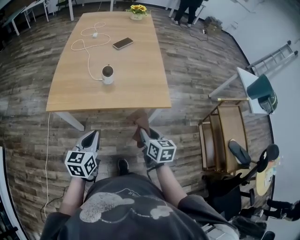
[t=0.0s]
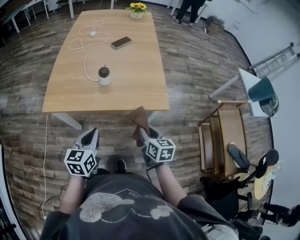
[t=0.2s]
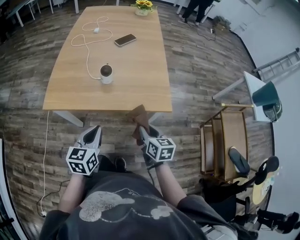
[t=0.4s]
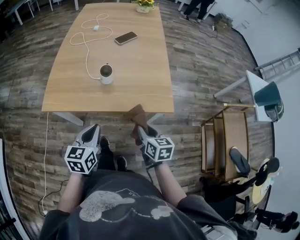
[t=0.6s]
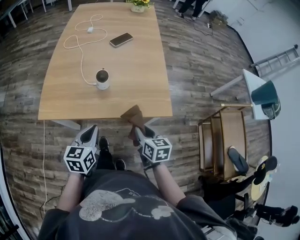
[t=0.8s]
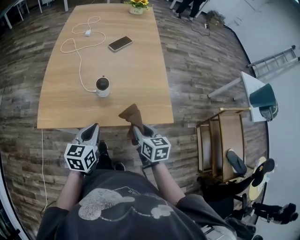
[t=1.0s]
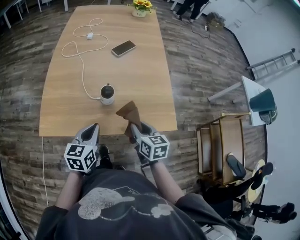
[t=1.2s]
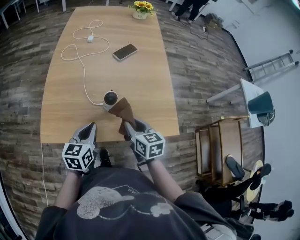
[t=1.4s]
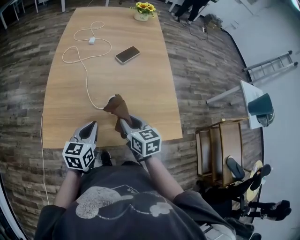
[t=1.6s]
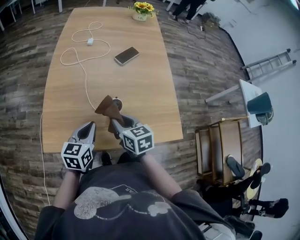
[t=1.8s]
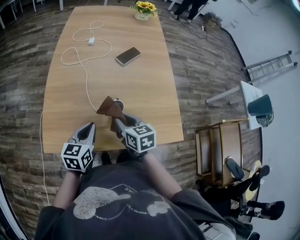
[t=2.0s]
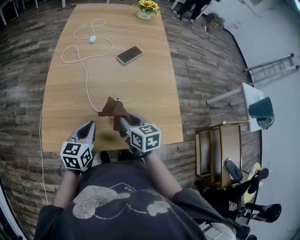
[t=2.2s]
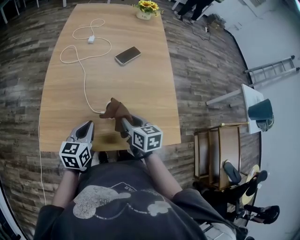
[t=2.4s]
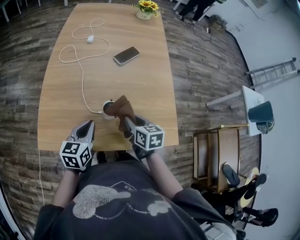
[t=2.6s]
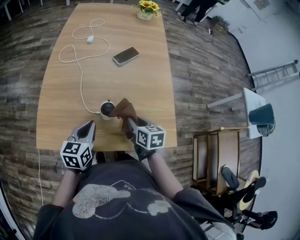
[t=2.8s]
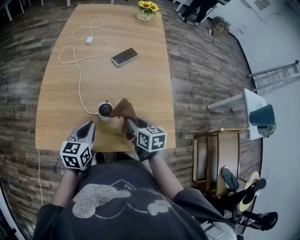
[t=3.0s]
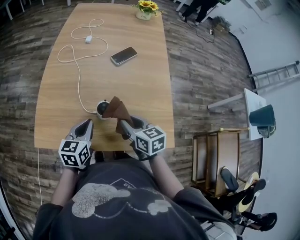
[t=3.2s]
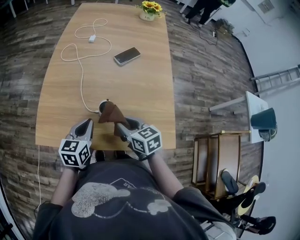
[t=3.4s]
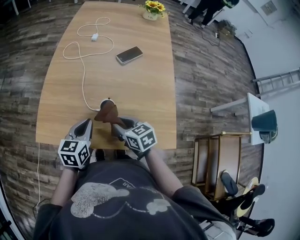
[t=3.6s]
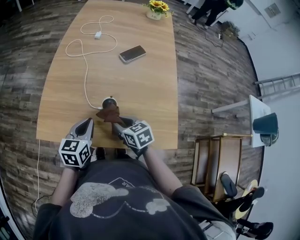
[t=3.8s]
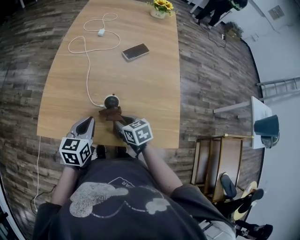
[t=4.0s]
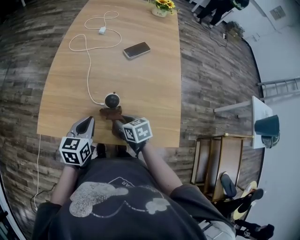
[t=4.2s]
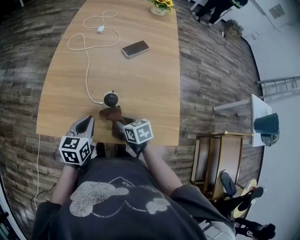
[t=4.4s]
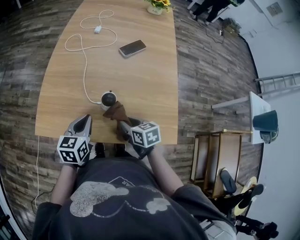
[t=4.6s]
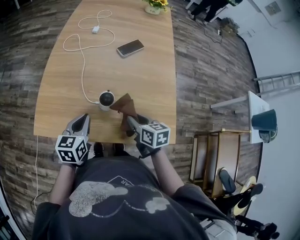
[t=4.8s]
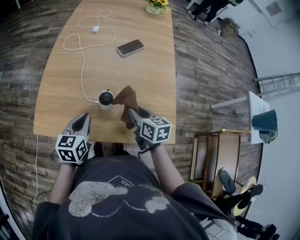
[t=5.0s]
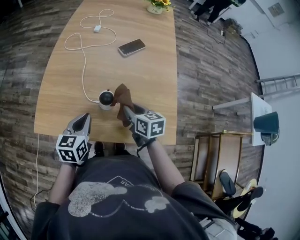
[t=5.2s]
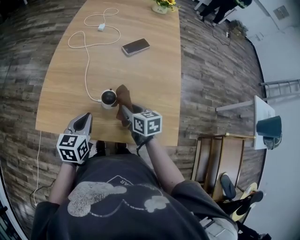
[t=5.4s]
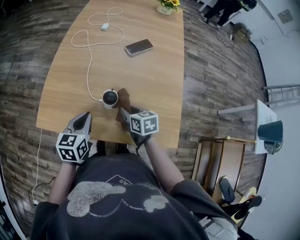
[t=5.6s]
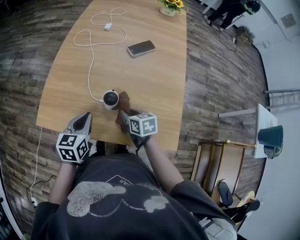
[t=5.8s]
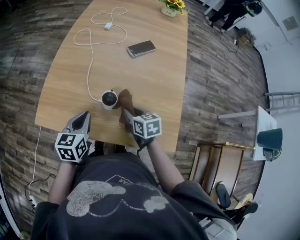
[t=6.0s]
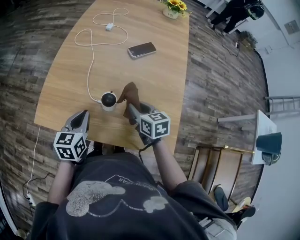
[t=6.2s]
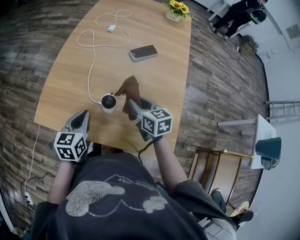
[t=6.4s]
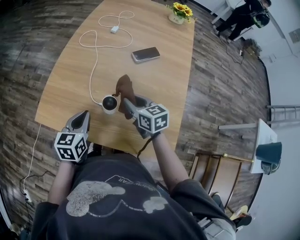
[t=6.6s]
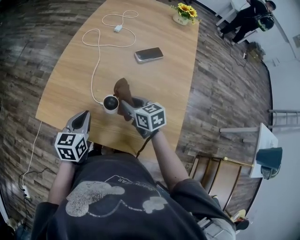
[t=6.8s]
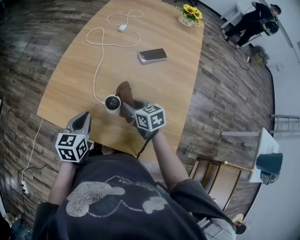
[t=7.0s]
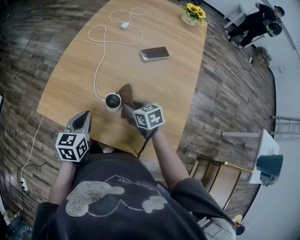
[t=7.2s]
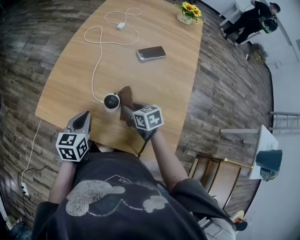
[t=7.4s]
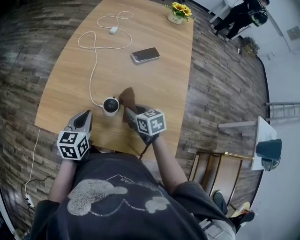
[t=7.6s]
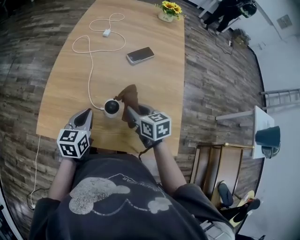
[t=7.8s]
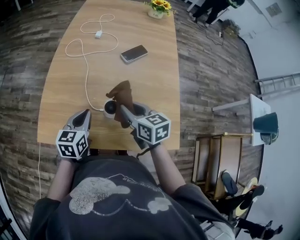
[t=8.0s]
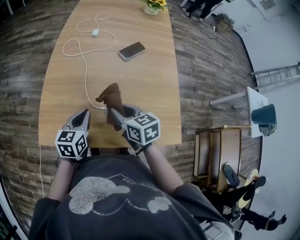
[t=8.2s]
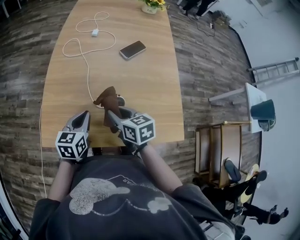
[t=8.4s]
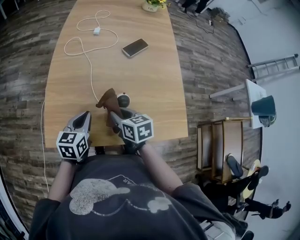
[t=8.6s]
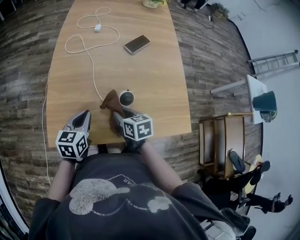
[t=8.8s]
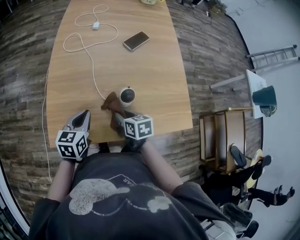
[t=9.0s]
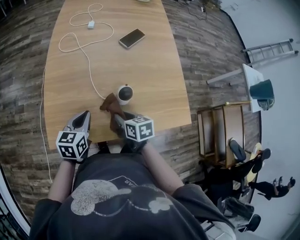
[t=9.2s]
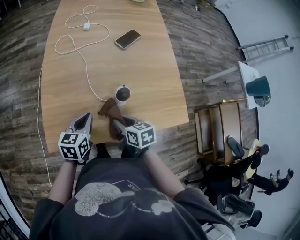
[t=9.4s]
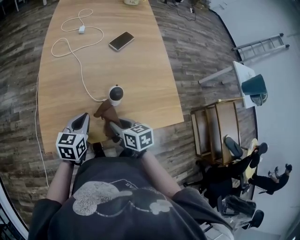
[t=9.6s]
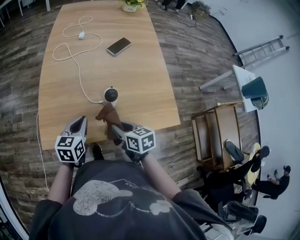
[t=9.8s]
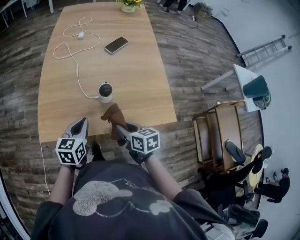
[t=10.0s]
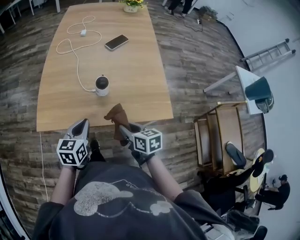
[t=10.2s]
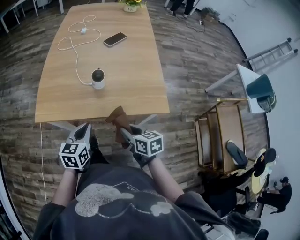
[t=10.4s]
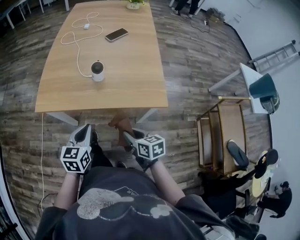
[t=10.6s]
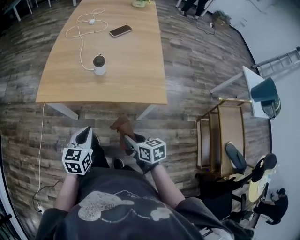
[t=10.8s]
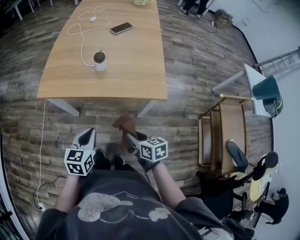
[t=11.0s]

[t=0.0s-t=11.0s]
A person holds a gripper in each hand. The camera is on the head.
t=0.0s to t=1.6s: The left gripper is displaced forward by about 25 cm. Meanwhile the right gripper goes roughly 30 cm forward and to the left.
t=4.8s to t=6.2s: The right gripper shifts about 5 cm forward, and travels downward and back again, some 5 cm each way.
t=6.2s to t=7.8s: The right gripper goes downward and returns, roughly 5 cm each way.
t=7.8s to t=9.4s: The left gripper moves to the left, roughly 5 cm, and rotates some 20 degrees; the right gripper goes roughly 15 cm to the left, backward and downward, and swivels some 20 degrees.
t=9.4s to t=11.0s: The left gripper moves backward, some 30 cm, while the right gripper is displaced backward and to the right by about 35 cm.

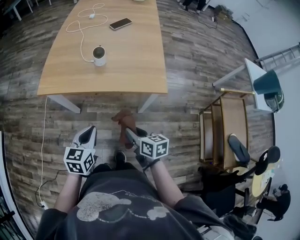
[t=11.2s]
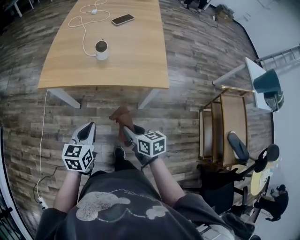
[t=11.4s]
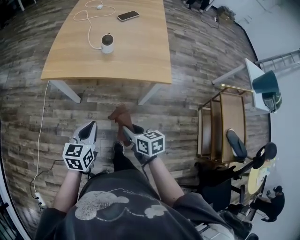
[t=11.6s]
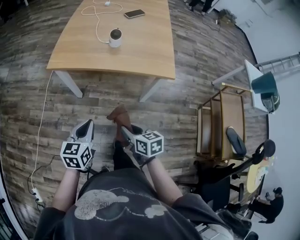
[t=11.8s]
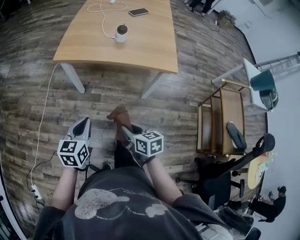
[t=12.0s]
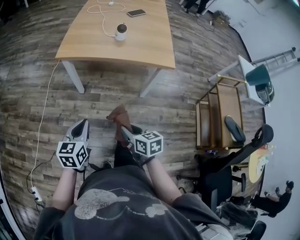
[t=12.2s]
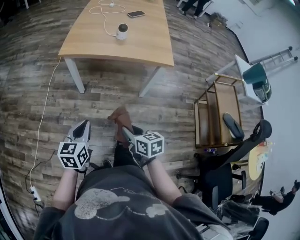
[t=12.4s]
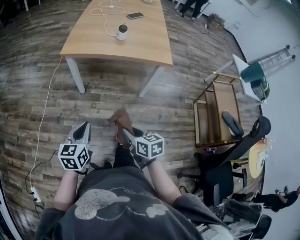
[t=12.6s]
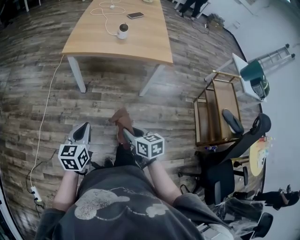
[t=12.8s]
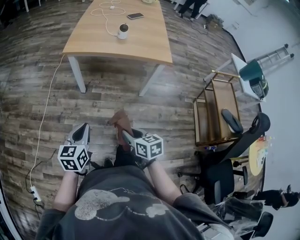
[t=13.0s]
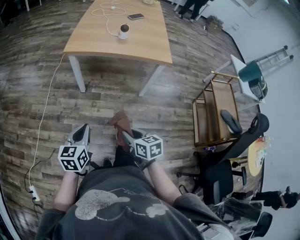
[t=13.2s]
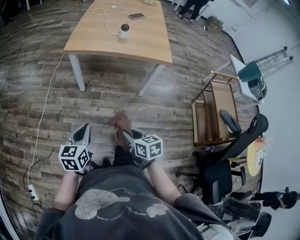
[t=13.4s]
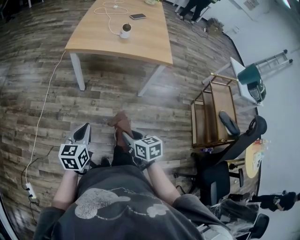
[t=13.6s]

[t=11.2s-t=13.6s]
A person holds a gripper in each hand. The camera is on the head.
t=11.2s to t=12.4s: Both grippers move backward and to the left, roughly 25 cm.
t=12.4s to t=13.6s: Both grippers travel together backward, approximately 5 cm.

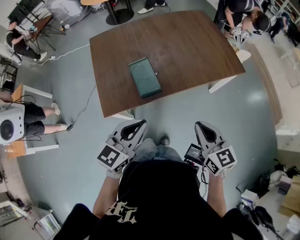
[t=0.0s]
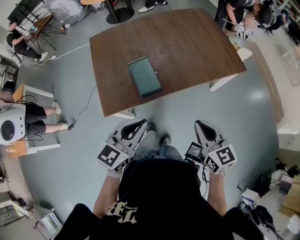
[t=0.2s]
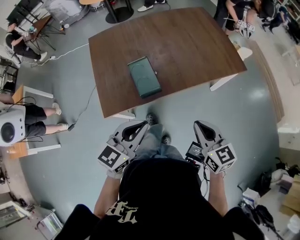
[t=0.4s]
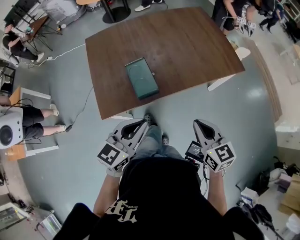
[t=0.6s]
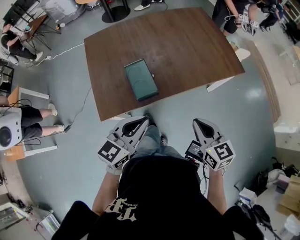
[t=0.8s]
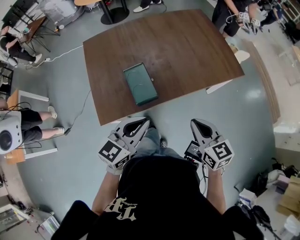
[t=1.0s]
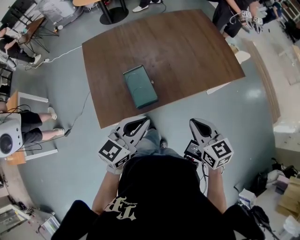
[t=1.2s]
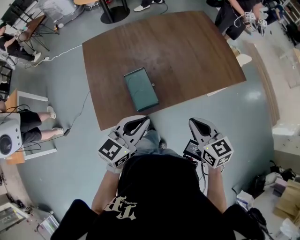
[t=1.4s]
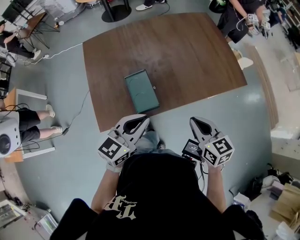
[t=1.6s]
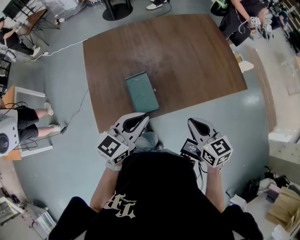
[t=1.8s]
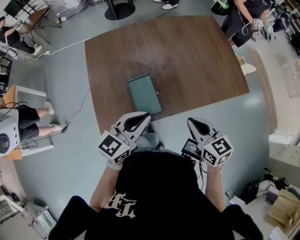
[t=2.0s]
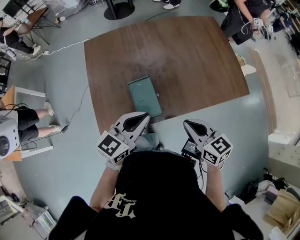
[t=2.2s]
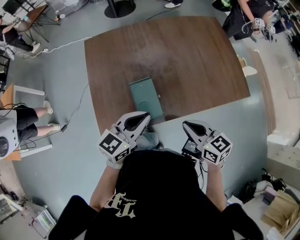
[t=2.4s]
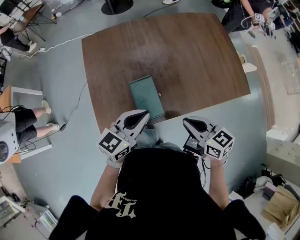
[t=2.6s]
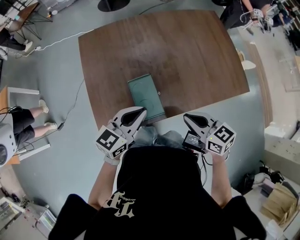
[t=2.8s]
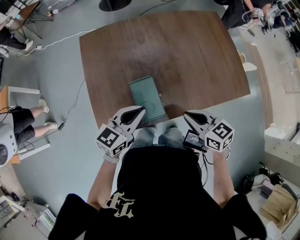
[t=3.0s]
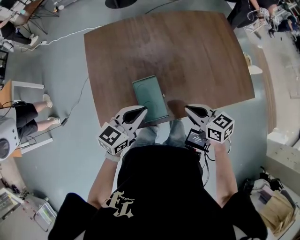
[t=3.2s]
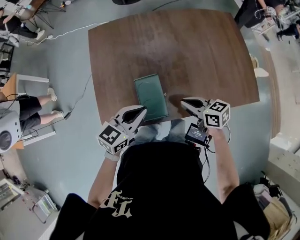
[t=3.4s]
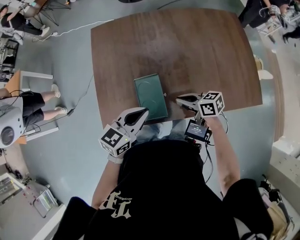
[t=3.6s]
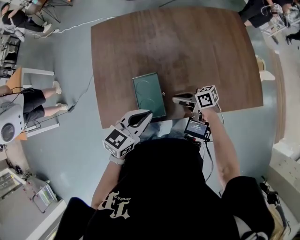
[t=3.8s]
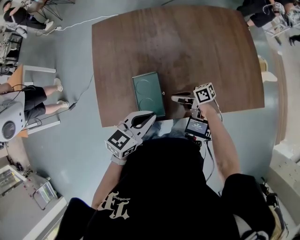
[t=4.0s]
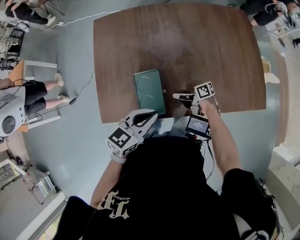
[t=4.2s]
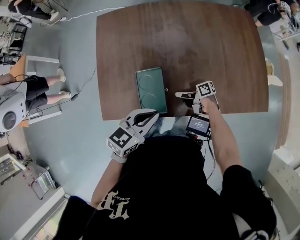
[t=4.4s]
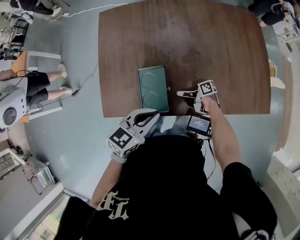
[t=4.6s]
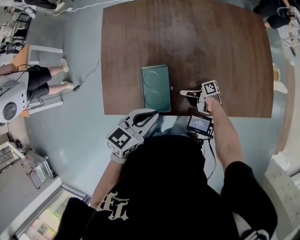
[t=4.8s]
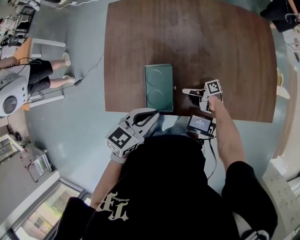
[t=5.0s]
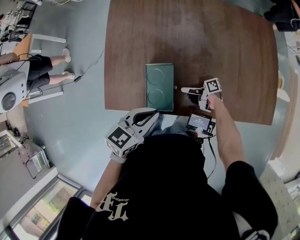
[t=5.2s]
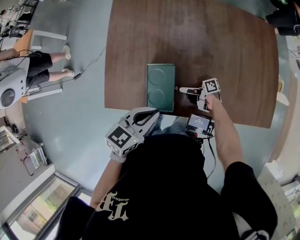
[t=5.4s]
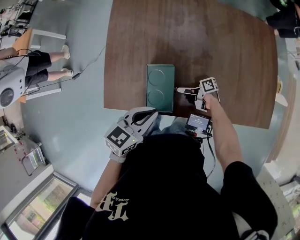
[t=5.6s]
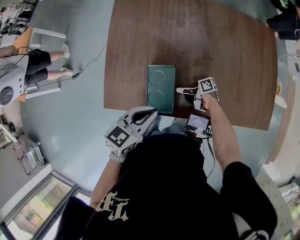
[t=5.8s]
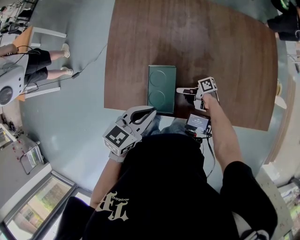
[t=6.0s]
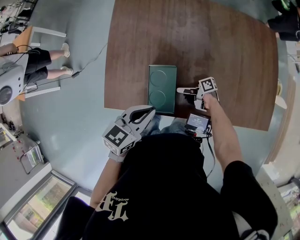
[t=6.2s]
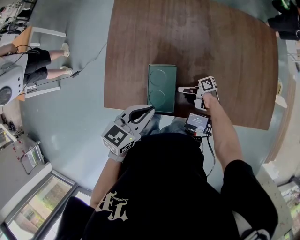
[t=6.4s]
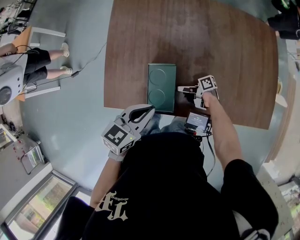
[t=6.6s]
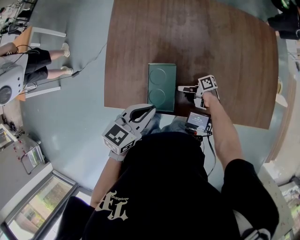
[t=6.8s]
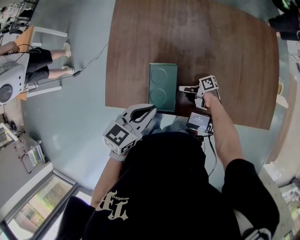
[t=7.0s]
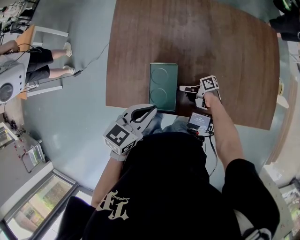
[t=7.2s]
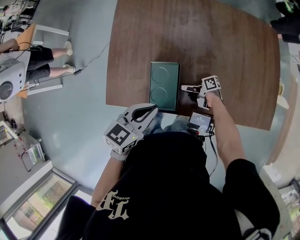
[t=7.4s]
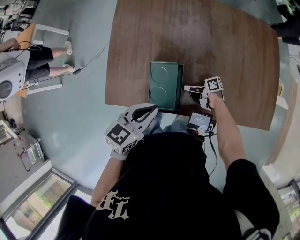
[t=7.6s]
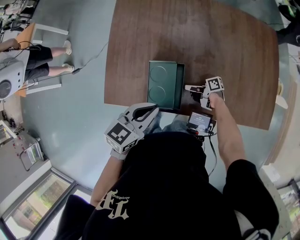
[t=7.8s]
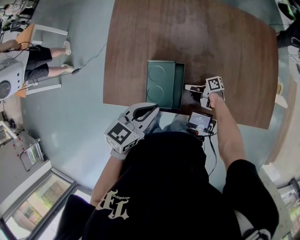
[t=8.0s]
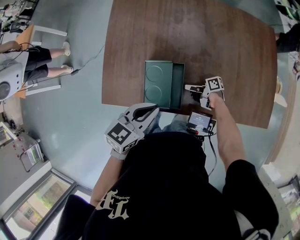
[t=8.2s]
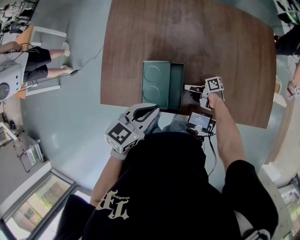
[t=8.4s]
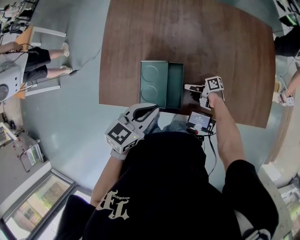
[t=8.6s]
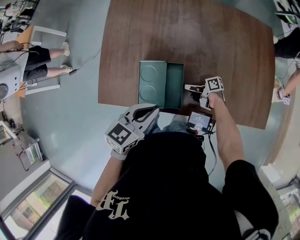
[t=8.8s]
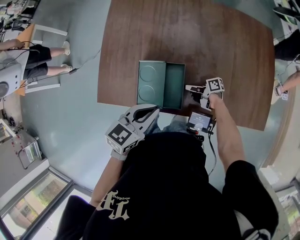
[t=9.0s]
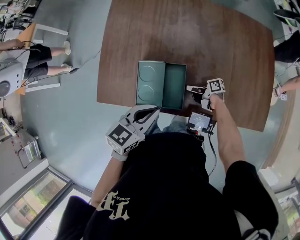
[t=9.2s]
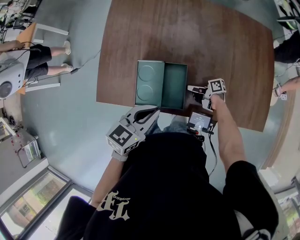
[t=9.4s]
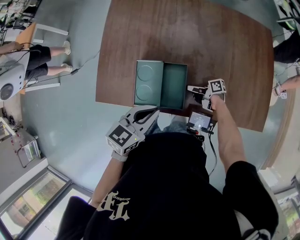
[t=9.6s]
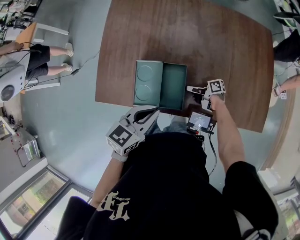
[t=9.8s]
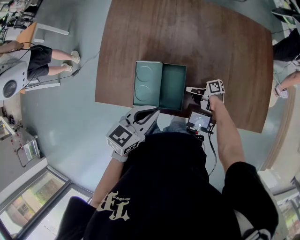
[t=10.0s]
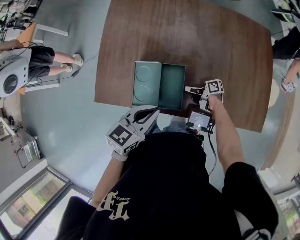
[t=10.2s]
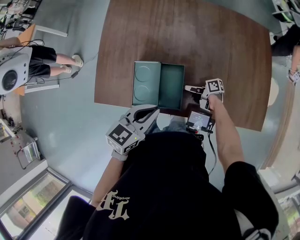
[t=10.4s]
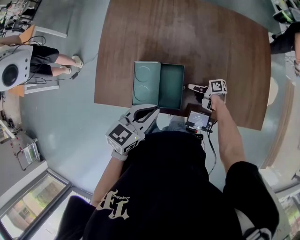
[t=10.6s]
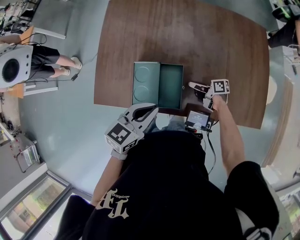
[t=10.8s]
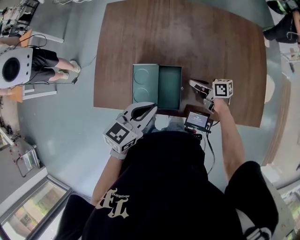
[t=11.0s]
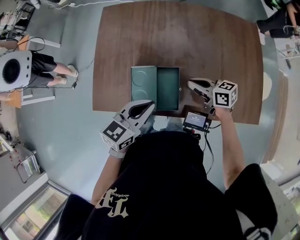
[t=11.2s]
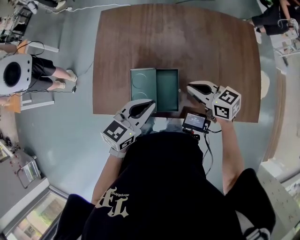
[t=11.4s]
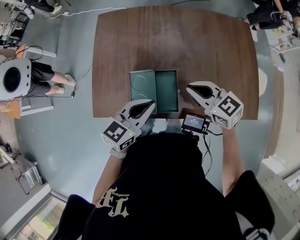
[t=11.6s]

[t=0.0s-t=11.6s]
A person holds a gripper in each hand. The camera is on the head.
t=0.0s to t=1.4s: Both grippers travel together forward, roughly 10 cm.
t=1.4s to t=2.8s: The two grippers go some 15 cm forward and to the left.
t=2.8s to t=4.4s: The right gripper goes approximately 30 cm downward, and rotates approximately 60 degrees. Meanwhile the left gripper shifts by some 10 cm.
t=4.4s to t=5.8s: The right gripper moves some 5 cm.
t=5.8s to t=7.2s: The grippers move only a little.
t=7.2s to t=8.8s: The right gripper ends up some 5 cm from where it was.
t=8.8s to t=10.2s: There are only small adjustments of the grippers.
t=10.2s to t=11.6s: The right gripper shifts some 30 cm upward, and twists roughly 60 degrees counterclockwise, seen from behind. Meanwhile the left gripper changes place by approximately 5 cm.
